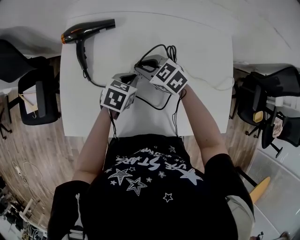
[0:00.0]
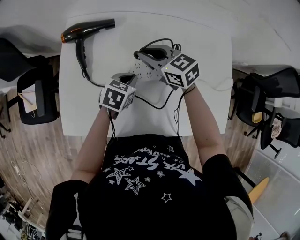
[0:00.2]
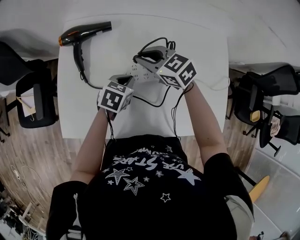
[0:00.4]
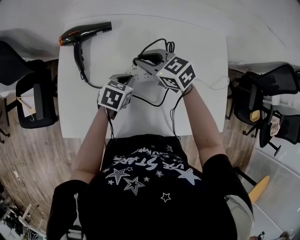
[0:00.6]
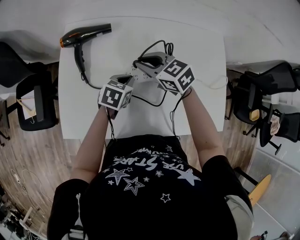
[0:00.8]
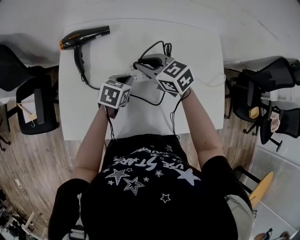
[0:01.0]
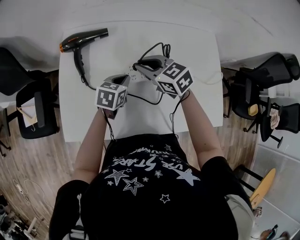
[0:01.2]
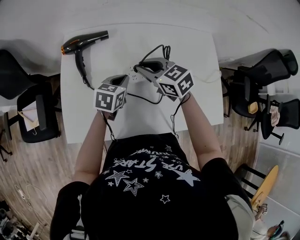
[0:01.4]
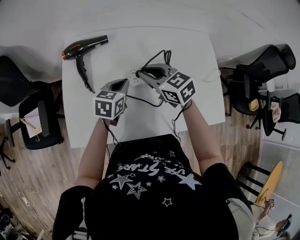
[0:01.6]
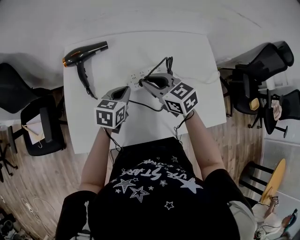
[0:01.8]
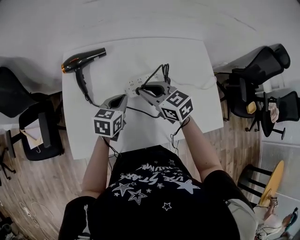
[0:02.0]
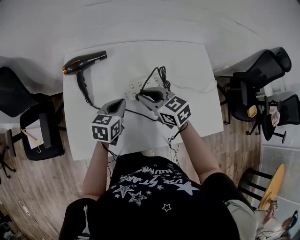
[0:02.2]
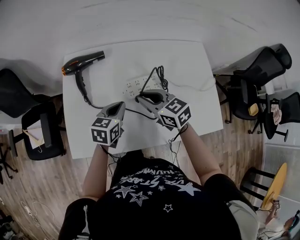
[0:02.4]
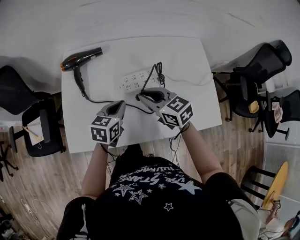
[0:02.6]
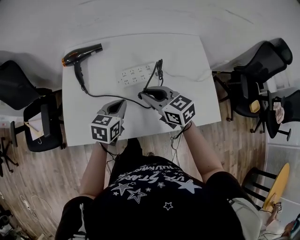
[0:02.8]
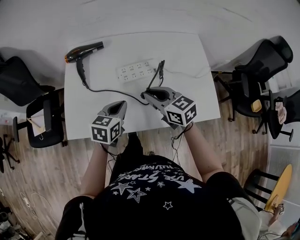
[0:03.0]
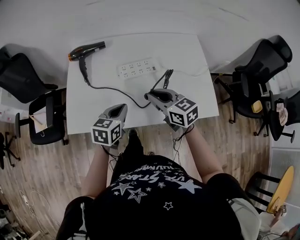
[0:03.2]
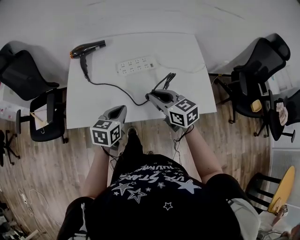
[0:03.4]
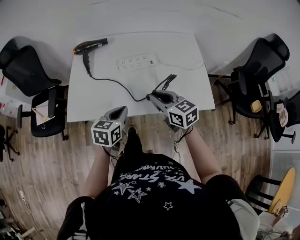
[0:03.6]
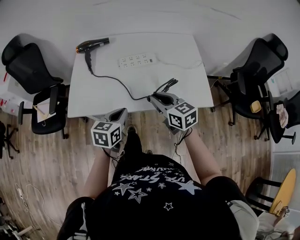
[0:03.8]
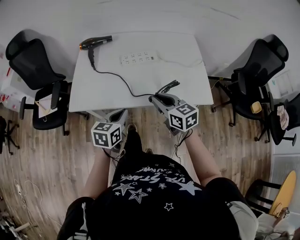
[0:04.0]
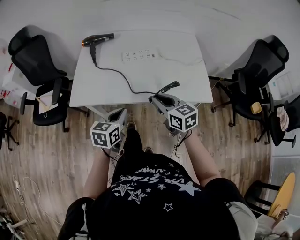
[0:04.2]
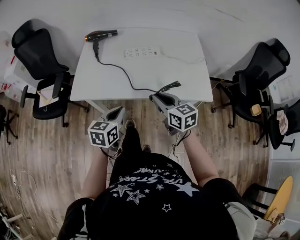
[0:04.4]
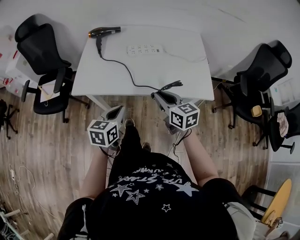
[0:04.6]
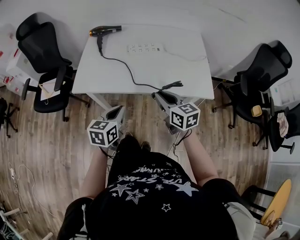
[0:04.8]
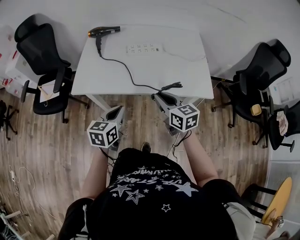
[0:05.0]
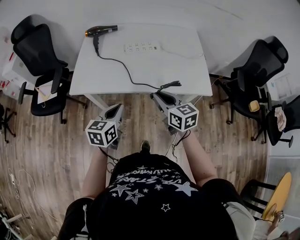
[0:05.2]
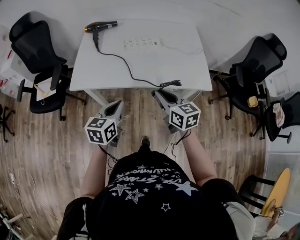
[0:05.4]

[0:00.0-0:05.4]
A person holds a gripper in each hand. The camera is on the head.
0:00.0 to 0:01.4: The right gripper goes about 10 cm upward.
0:01.4 to 0:02.8: The grippers both shift backward by approximately 10 cm.
0:02.8 to 0:04.0: Both grippers move backward, roughly 20 cm.
0:04.0 to 0:05.4: The two grippers go some 5 cm backward.

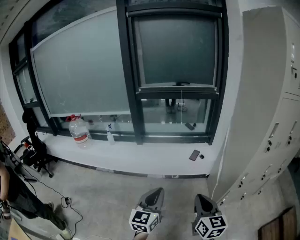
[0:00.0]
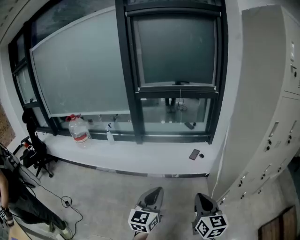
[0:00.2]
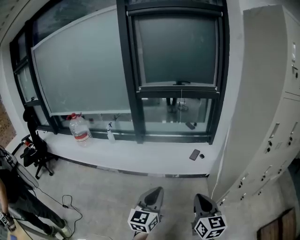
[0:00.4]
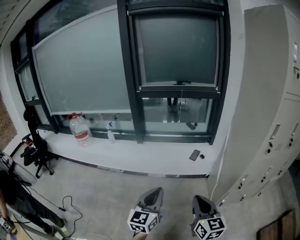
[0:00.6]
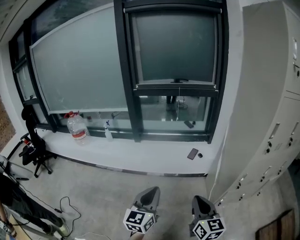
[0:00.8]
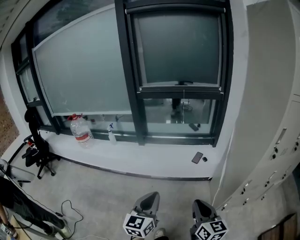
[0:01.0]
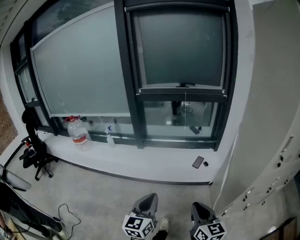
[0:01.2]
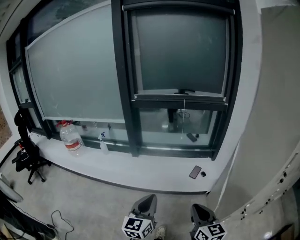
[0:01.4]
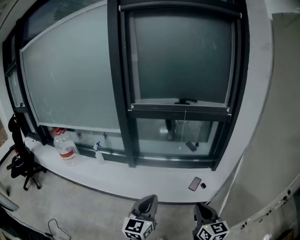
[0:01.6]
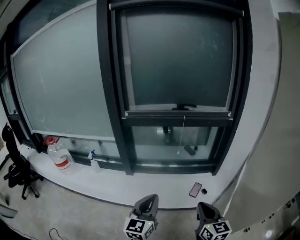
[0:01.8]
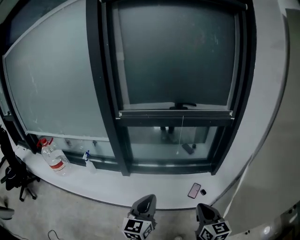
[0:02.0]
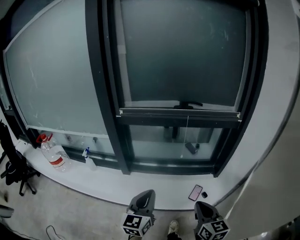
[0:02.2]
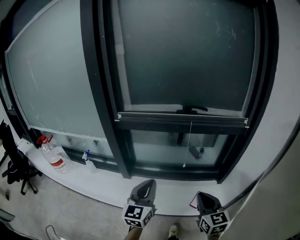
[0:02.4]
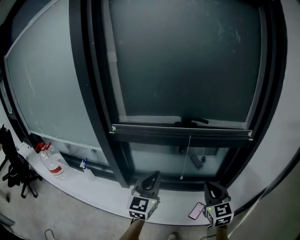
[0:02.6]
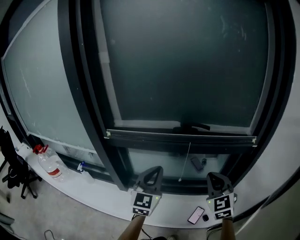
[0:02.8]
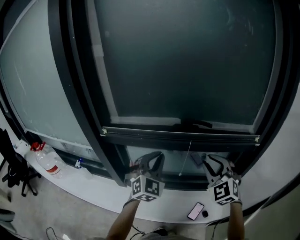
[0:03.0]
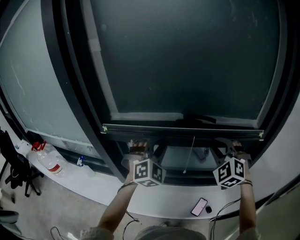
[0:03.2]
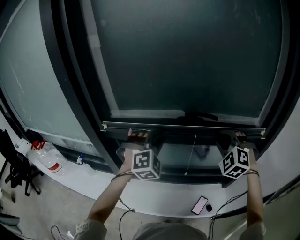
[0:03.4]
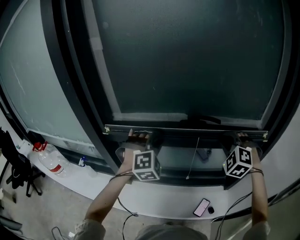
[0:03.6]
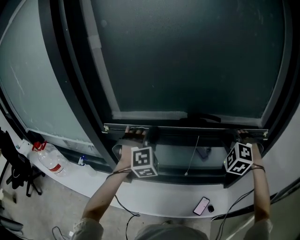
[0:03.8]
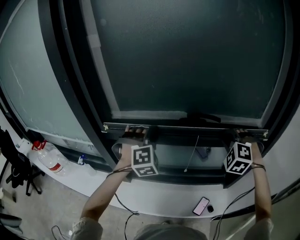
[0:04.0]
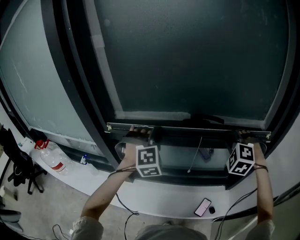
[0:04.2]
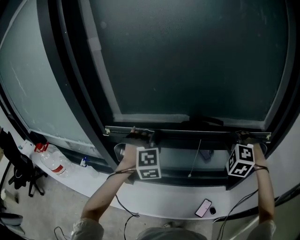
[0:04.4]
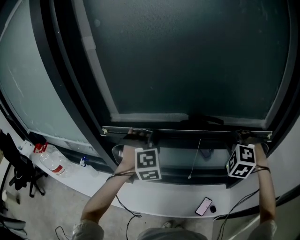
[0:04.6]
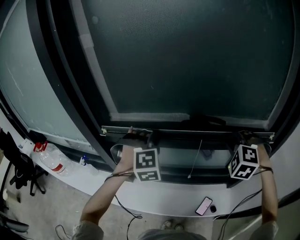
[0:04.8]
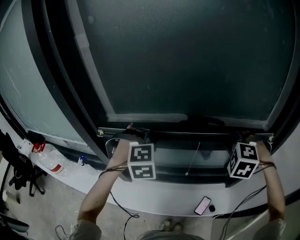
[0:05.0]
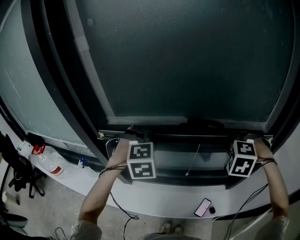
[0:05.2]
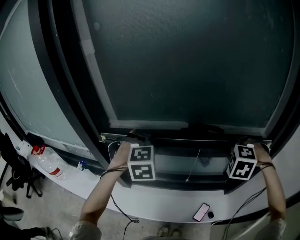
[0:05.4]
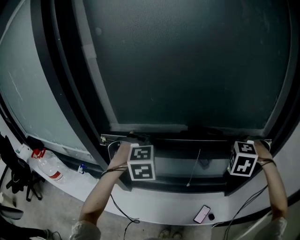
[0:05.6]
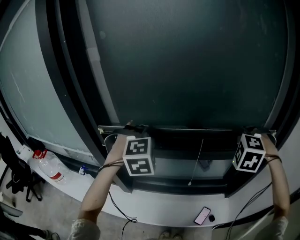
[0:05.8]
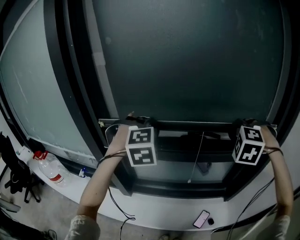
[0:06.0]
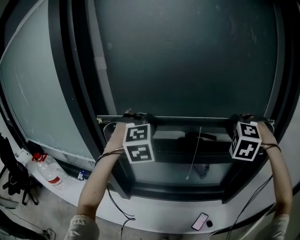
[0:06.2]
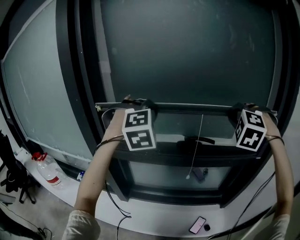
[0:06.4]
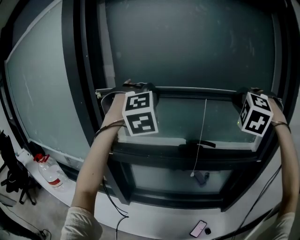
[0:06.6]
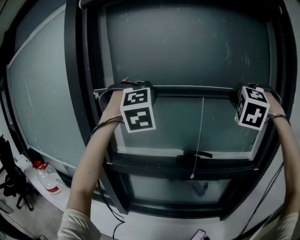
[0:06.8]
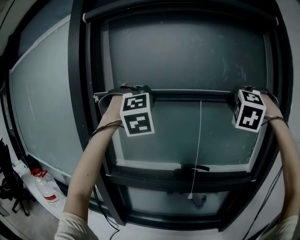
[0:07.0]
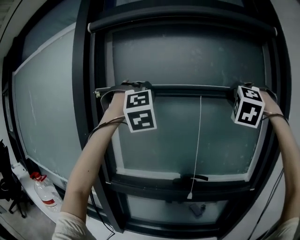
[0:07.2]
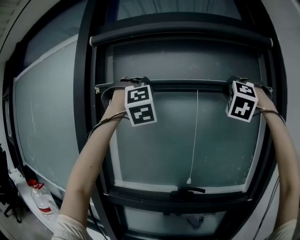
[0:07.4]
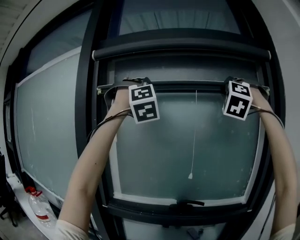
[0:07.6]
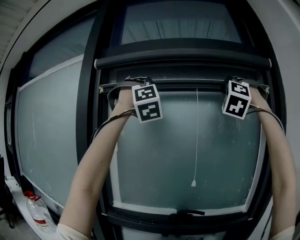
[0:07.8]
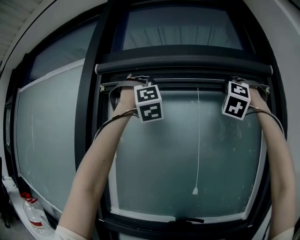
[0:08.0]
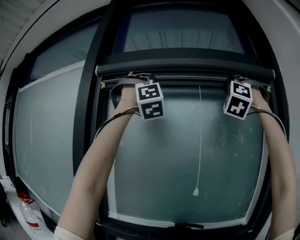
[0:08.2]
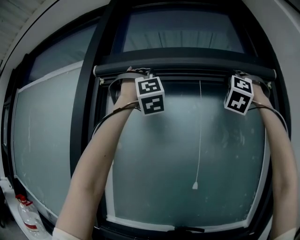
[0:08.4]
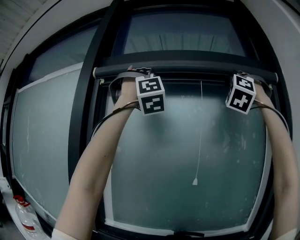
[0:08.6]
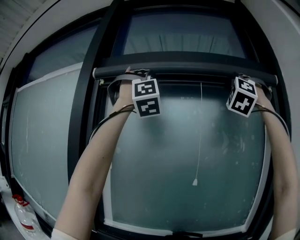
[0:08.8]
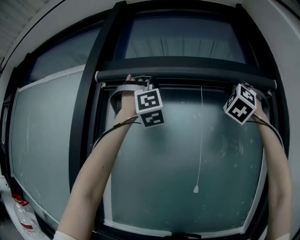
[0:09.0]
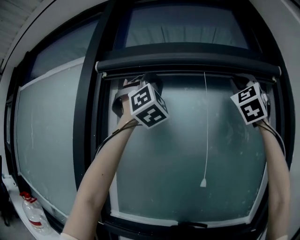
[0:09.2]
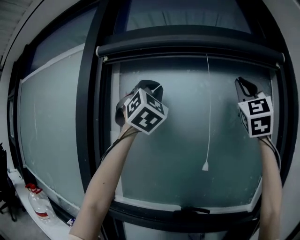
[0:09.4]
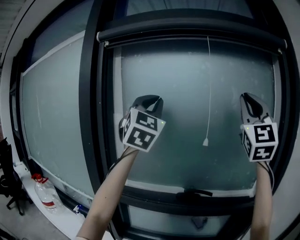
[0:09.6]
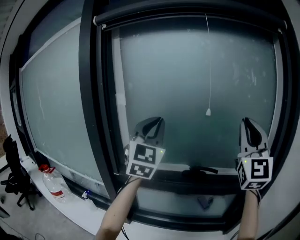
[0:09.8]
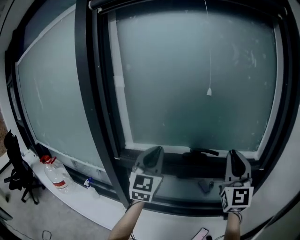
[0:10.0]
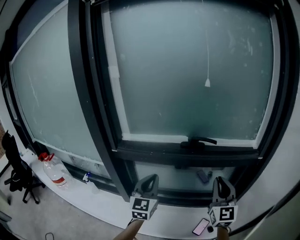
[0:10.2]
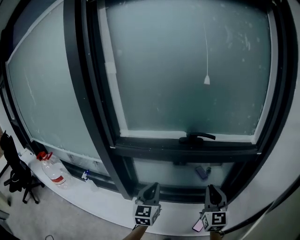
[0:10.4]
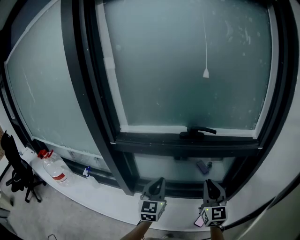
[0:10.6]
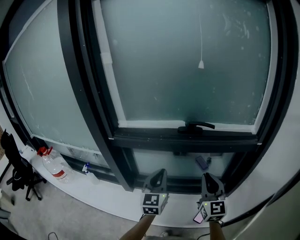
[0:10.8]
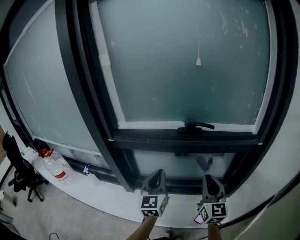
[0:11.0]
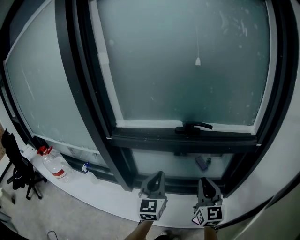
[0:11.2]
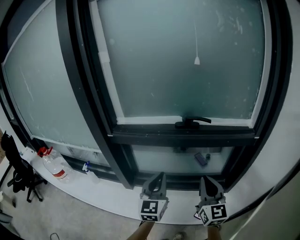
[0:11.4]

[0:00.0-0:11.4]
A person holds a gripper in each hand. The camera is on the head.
0:00.0 to 0:01.4: Both grippers move forward, some 20 cm.
0:01.4 to 0:02.8: Both grippers are carried forward, about 60 cm. The left gripper swivels roughly 20 degrees. The right gripper rotates some 40 degrees.
0:02.8 to 0:04.2: The grippers both shift forward by some 15 cm. The right gripper twists about 50 degrees counterclockwise, seen from behind, while the left gripper twists roughly 60 degrees clockwise, seen from behind.
0:04.2 to 0:05.6: The left gripper changes its angle by about 20 degrees.
0:05.6 to 0:07.2: Both grippers travel together upward, about 40 cm. The right gripper angles its fingers upward, by roughly 50 degrees, while the left gripper points its fingers some 50 degrees further upward.
0:07.2 to 0:08.6: Both grippers move upward, some 25 cm. The left gripper changes its angle by roughly 30 degrees; the right gripper angles its fingers upward, by about 30 degrees.
0:08.6 to 0:10.0: The grippers both shift downward by some 50 cm. The right gripper twists some 70 degrees clockwise, seen from behind. The left gripper rolls counterclockwise, seen from behind, by some 80 degrees.
0:10.0 to 0:11.4: The grippers both shift downward and backward by approximately 25 cm. The right gripper turns by some 30 degrees.

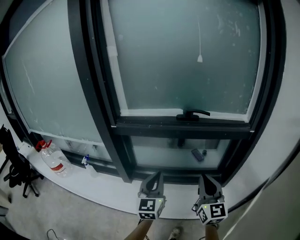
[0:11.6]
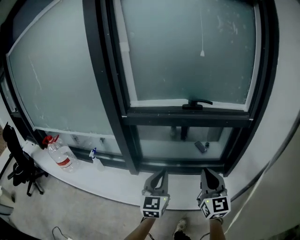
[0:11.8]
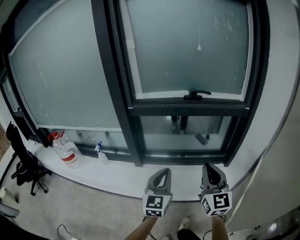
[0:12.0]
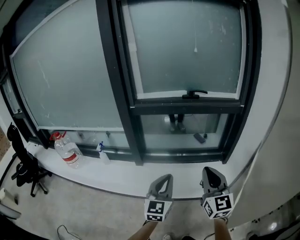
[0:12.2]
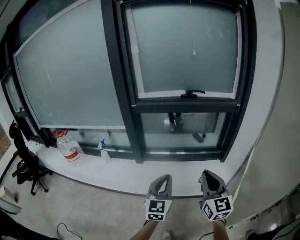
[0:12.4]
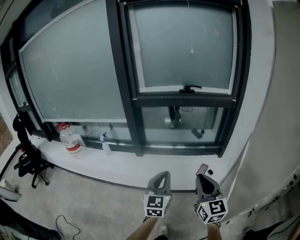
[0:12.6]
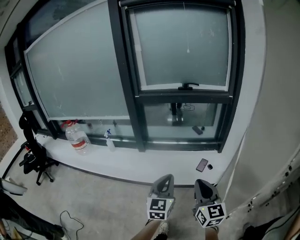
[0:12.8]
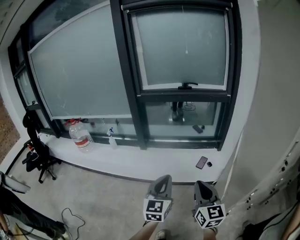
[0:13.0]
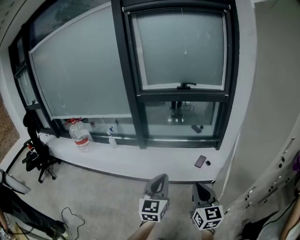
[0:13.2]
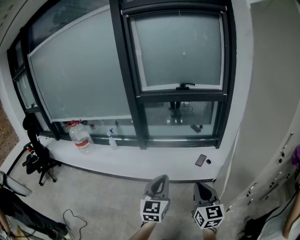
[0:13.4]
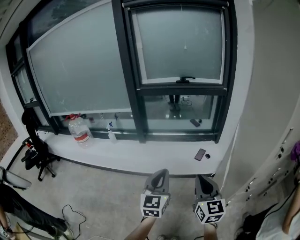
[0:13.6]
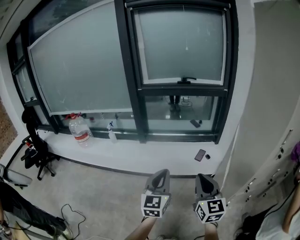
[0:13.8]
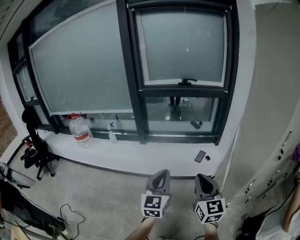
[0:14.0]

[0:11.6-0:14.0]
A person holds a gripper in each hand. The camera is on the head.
0:11.6 to 0:12.8: Both grippers are carried backward, about 40 cm.
0:12.8 to 0:14.0: The grippers both shift backward by some 10 cm.

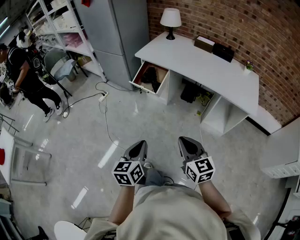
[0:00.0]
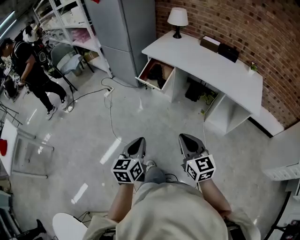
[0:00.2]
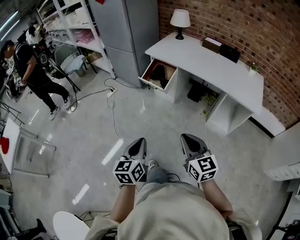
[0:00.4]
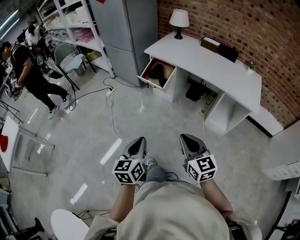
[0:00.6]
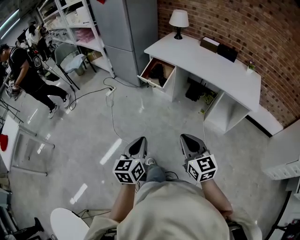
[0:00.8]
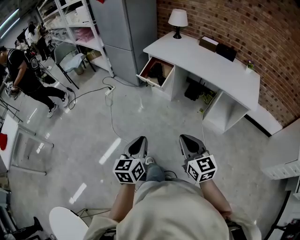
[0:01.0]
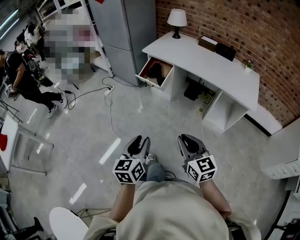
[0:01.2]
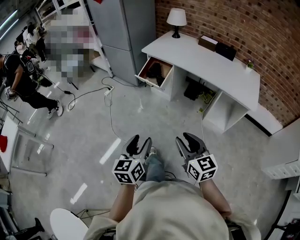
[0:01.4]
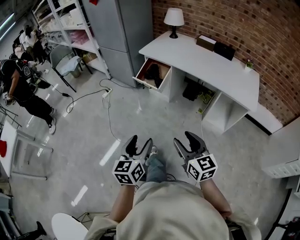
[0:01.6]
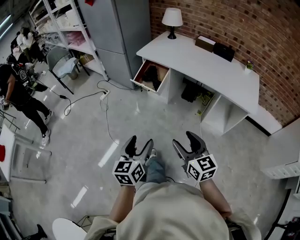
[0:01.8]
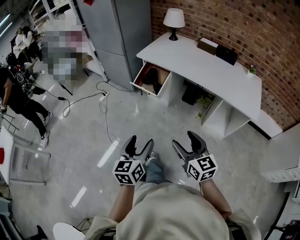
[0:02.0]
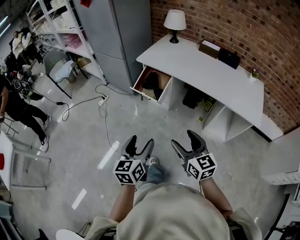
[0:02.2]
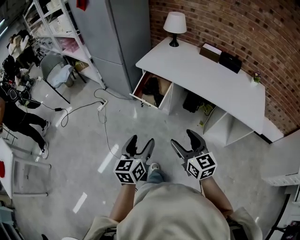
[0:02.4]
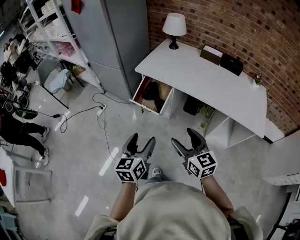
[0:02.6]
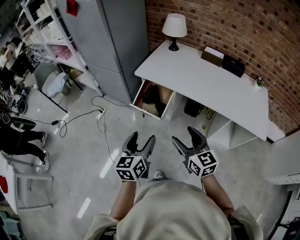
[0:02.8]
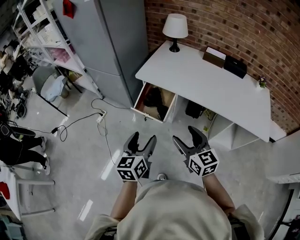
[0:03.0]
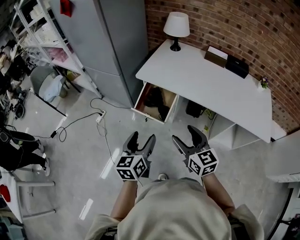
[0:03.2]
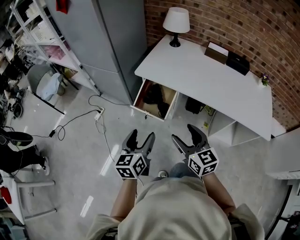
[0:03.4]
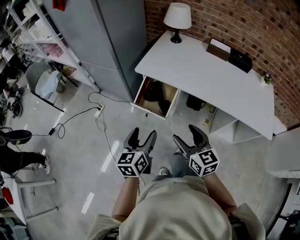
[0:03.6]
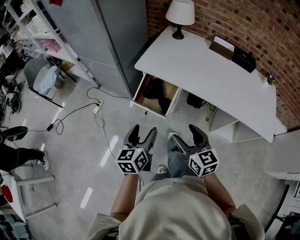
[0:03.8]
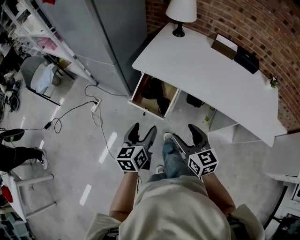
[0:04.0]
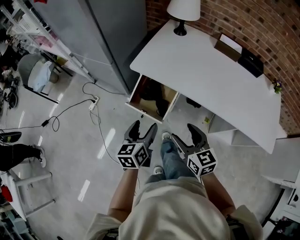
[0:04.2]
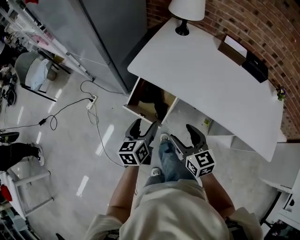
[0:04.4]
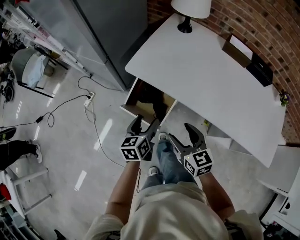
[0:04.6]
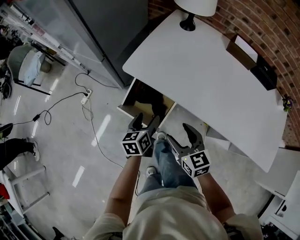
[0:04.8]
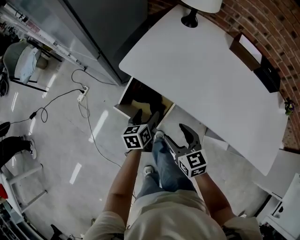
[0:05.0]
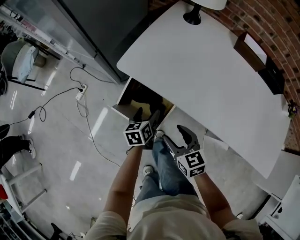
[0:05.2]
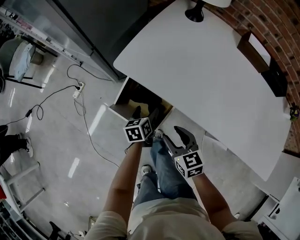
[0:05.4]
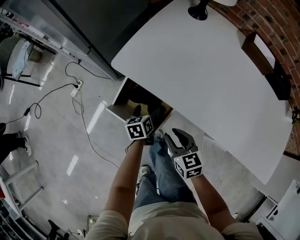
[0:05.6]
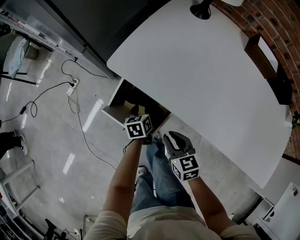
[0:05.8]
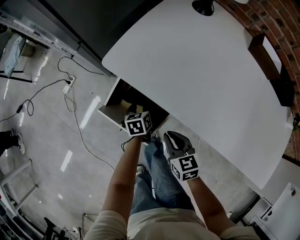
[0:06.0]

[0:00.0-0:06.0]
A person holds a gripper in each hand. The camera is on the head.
0:00.0 to 0:01.6: The grippers both shift backward by roughly 5 cm. The left gripper opens. Meanwhile the right gripper opens up.
0:01.6 to 0:03.0: The two grippers go about 35 cm forward.
0:03.0 to 0:04.4: Both grippers travel together forward and downward, about 25 cm.
0:04.4 to 0:06.0: The two grippers go some 30 cm downward and forward. The right gripper closes, while the left gripper changes its angle by roughly 20 degrees.
